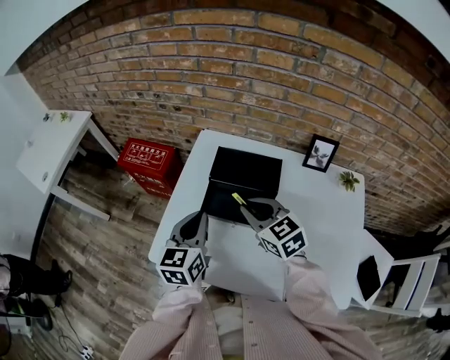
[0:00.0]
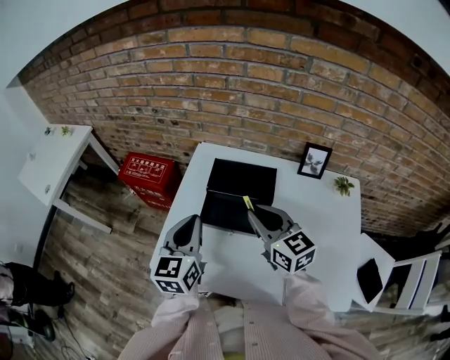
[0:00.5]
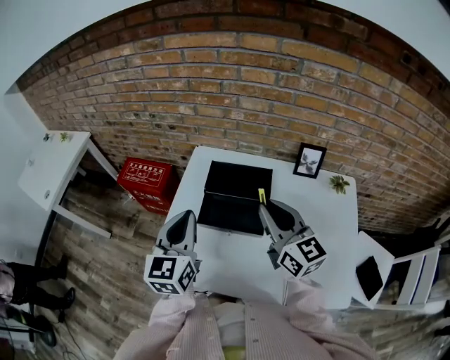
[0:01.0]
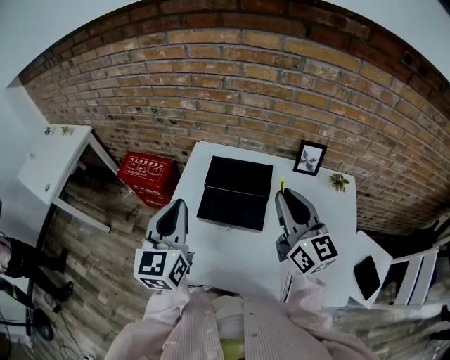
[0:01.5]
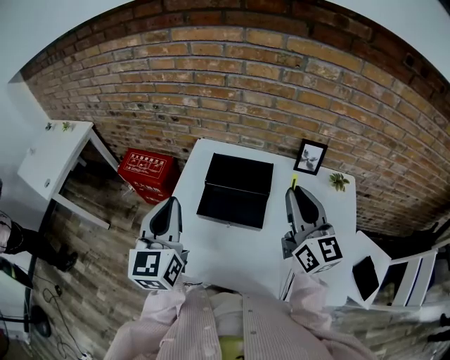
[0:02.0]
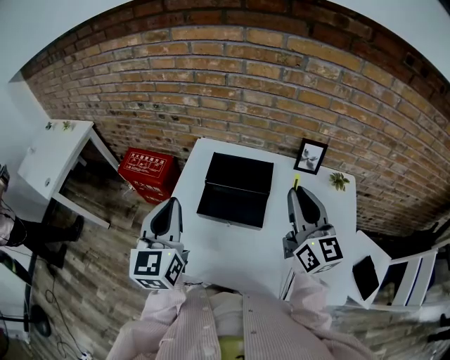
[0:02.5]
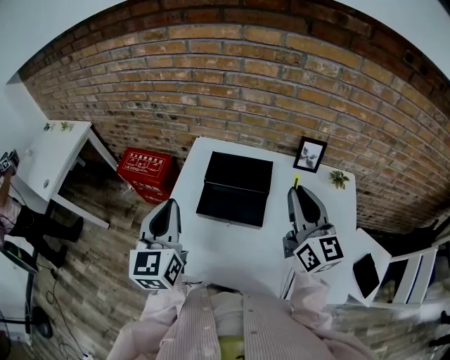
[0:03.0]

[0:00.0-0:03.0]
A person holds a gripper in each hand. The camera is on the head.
0:00.0 to 0:01.5: The left gripper moves upward, about 10 cm. Meanwhile the right gripper heads upward and to the right, covering some 20 cm, and points its fingers approximately 30 degrees further upward.
0:01.5 to 0:03.0: The grippers make only small movements.

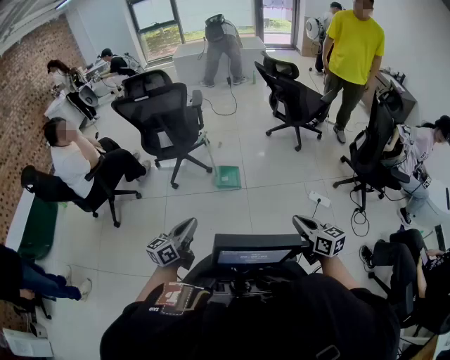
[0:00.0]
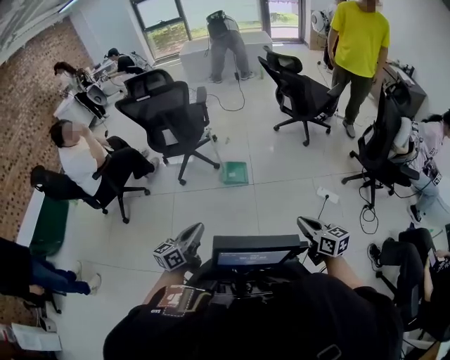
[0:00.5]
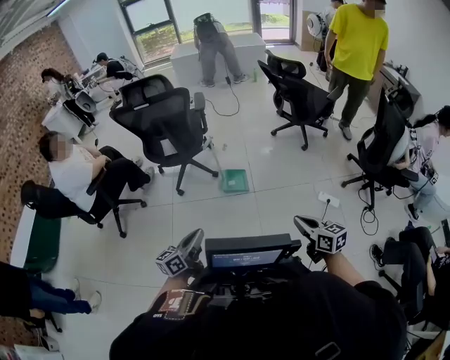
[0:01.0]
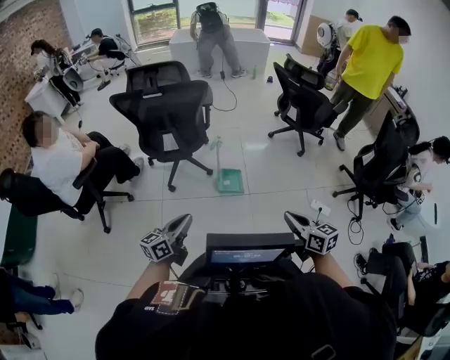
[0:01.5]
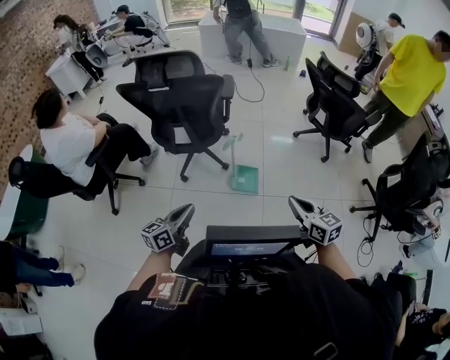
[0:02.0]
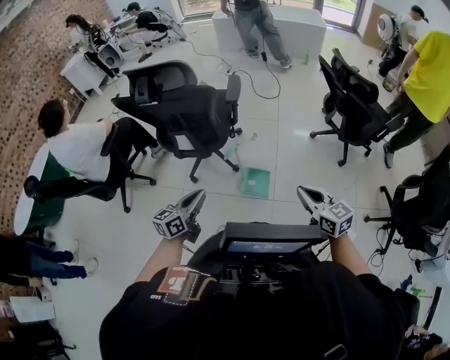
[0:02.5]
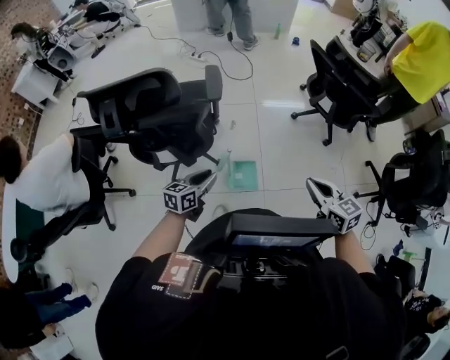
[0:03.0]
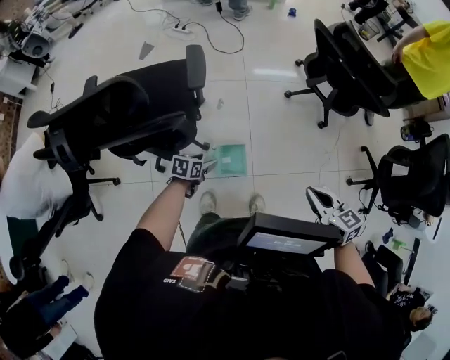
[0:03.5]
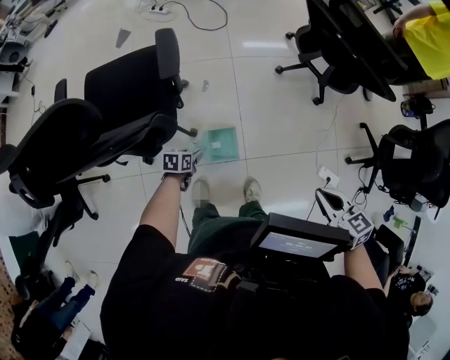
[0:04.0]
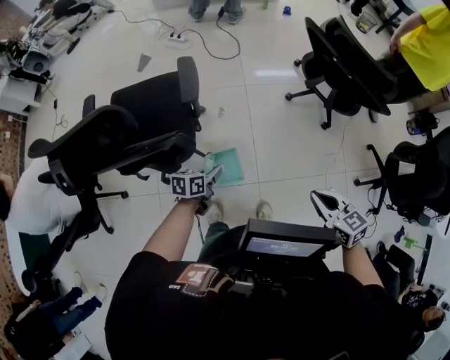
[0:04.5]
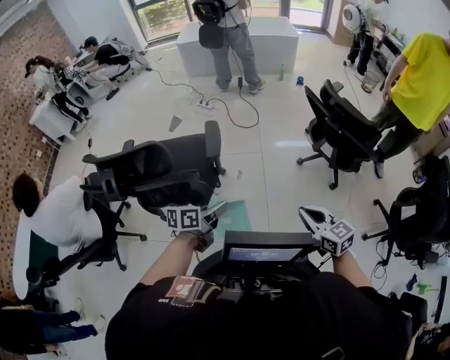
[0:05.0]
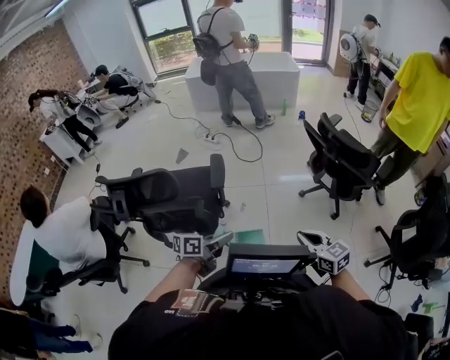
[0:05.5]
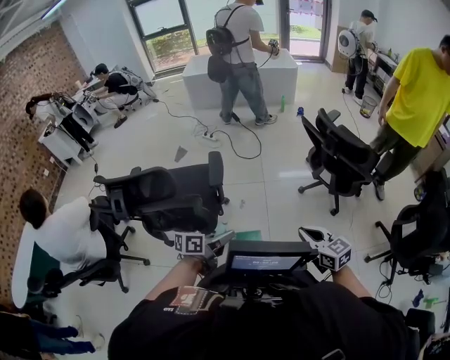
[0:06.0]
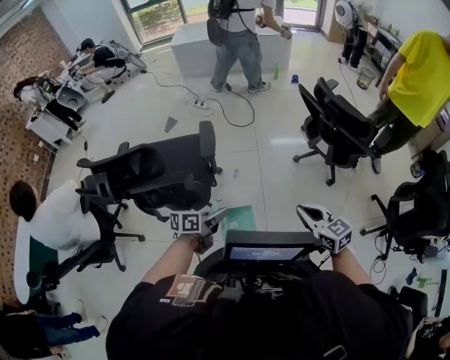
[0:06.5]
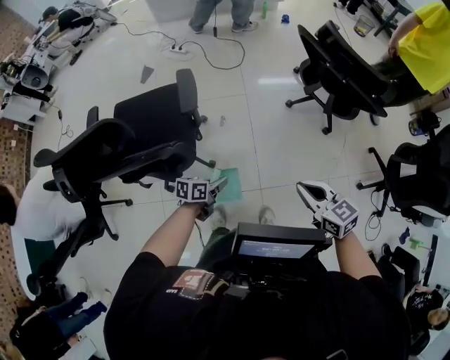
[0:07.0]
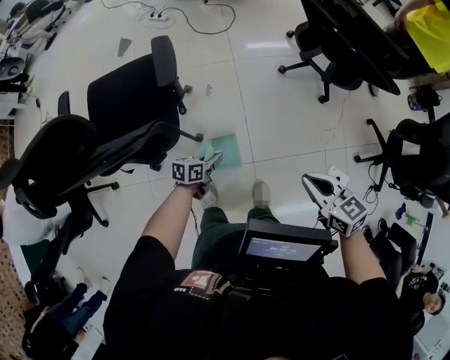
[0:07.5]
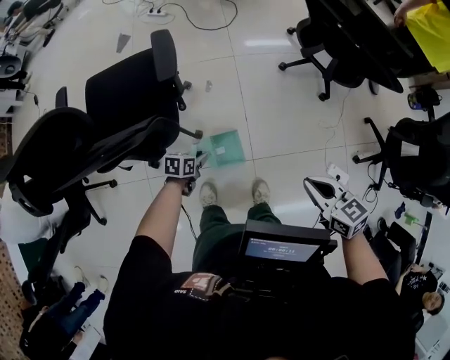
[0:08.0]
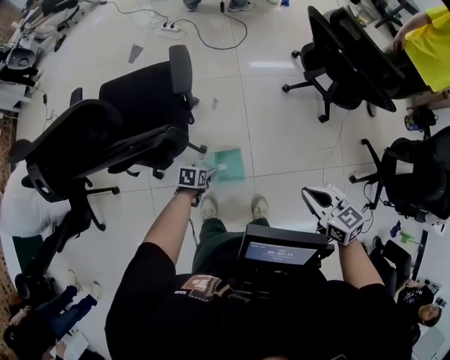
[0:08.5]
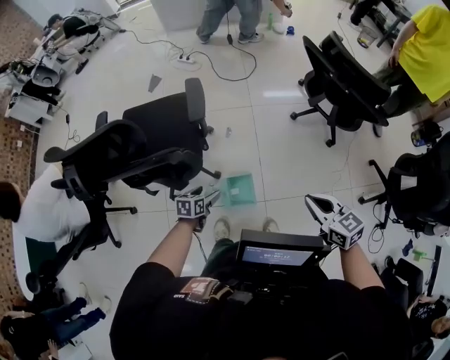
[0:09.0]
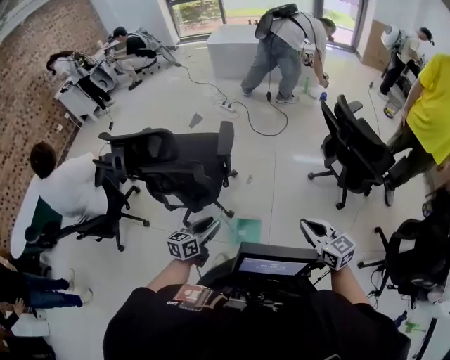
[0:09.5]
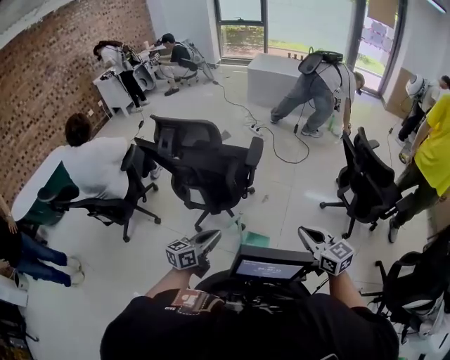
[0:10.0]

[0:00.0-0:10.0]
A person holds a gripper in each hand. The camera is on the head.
0:00.0 to 0:02.0: Both grippers are carried forward and to the left, roughly 50 cm.
0:02.0 to 0:04.0: The pair of grippers is taken forward, some 60 cm. The right gripper rotates about 20 degrees, while the left gripper is displaced downward by roughly 40 cm, tilts its fingers roughly 50 degrees downward, and opens.
0:04.0 to 0:06.0: The right gripper is displaced upward by some 20 cm, and turns by approximately 30 degrees. Meanwhile the left gripper travels upward by about 50 cm, tips its fingers upward by about 40 degrees, and closes up.
0:06.0 to 0:08.0: The right gripper shifts some 25 cm downward. The left gripper shifts roughly 50 cm downward, and tips its fingers downward by some 30 degrees.
0:08.0 to 0:10.0: The left gripper goes roughly 50 cm upward, tips its fingers upward by approximately 40 degrees, and opens, then closes once more; the right gripper travels upward by about 30 cm, and rotates roughly 30 degrees.

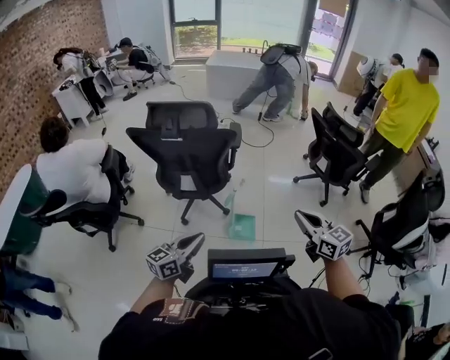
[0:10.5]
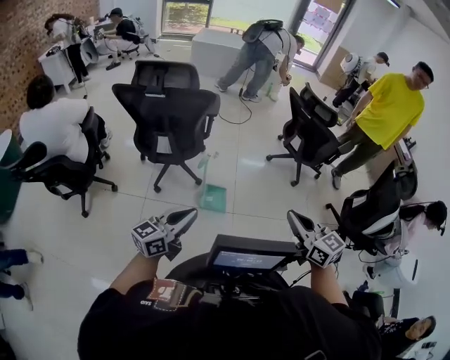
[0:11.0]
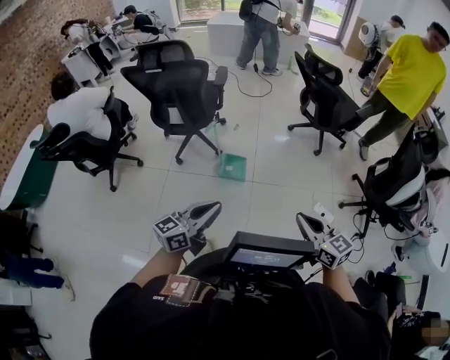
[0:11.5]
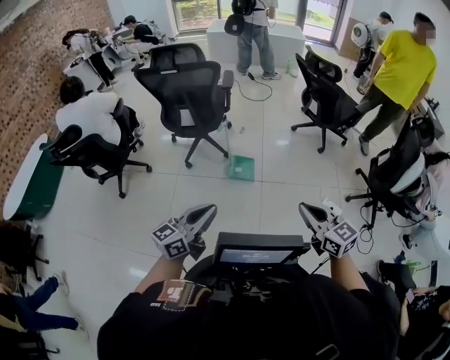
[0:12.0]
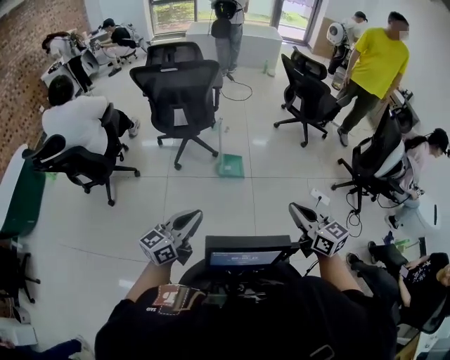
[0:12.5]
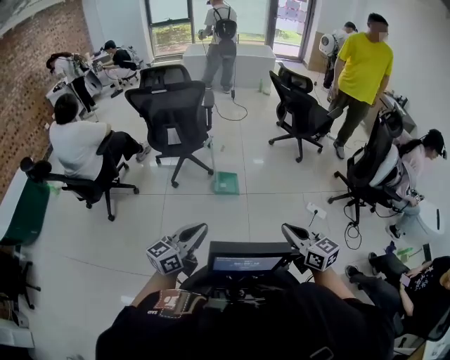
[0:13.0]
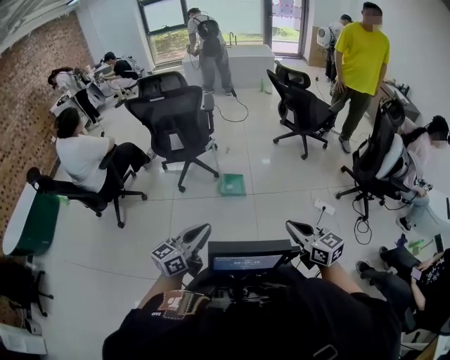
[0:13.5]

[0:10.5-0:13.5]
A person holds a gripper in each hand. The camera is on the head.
0:10.5 to 0:12.0: Both grippers are carried backward and to the right, some 50 cm.
0:12.0 to 0:13.5: The two grippers go approximately 15 cm backward. The left gripper reaches roughly 15 cm to the left, then returns.

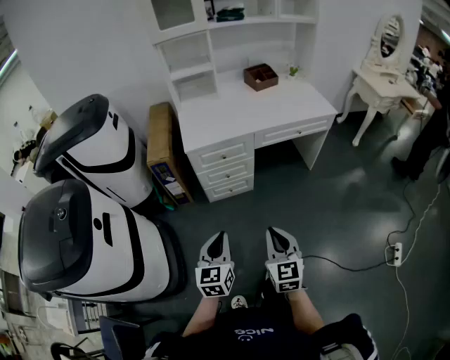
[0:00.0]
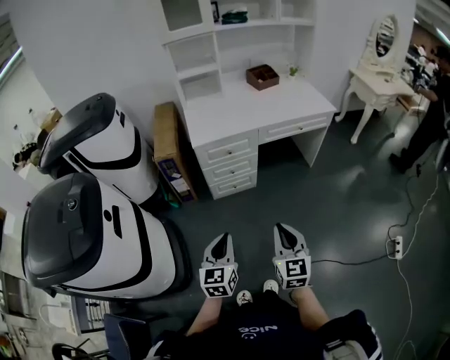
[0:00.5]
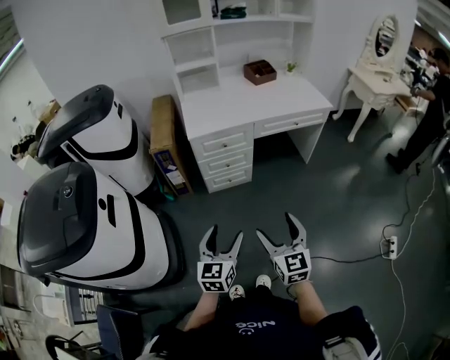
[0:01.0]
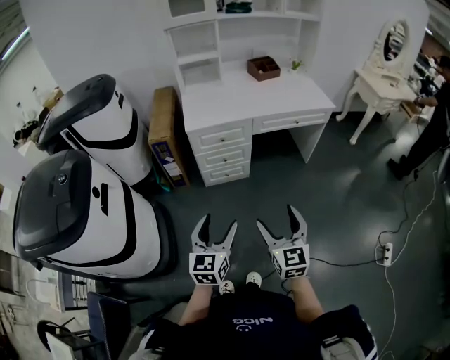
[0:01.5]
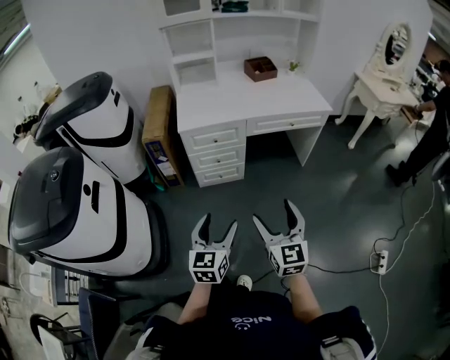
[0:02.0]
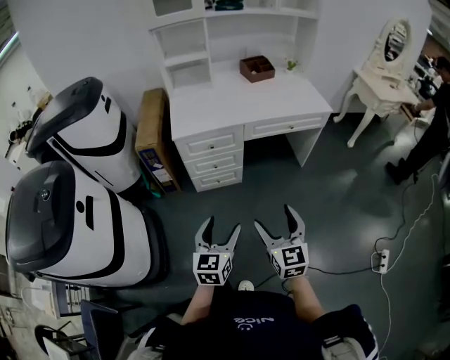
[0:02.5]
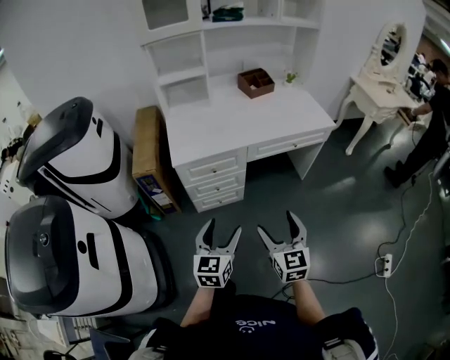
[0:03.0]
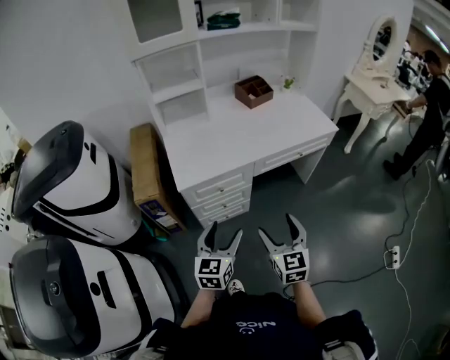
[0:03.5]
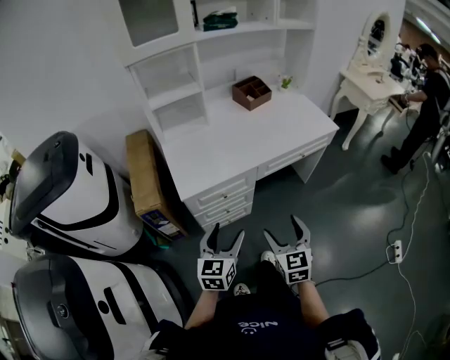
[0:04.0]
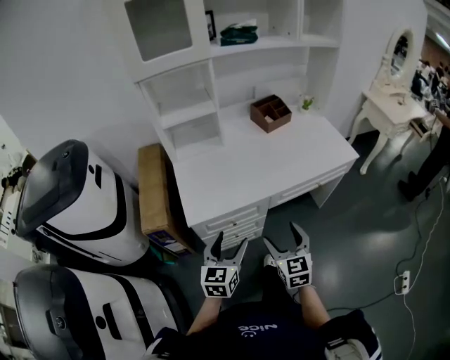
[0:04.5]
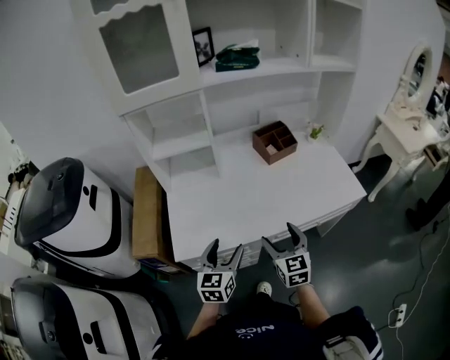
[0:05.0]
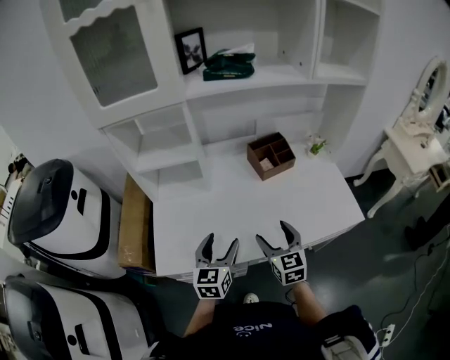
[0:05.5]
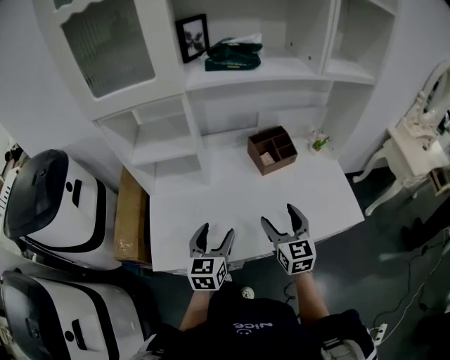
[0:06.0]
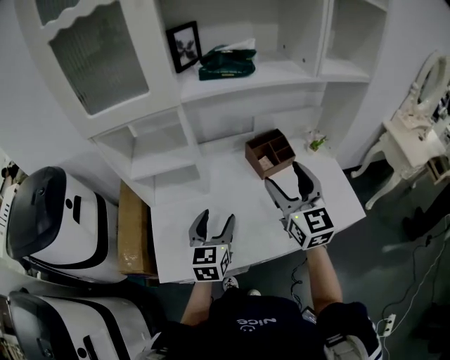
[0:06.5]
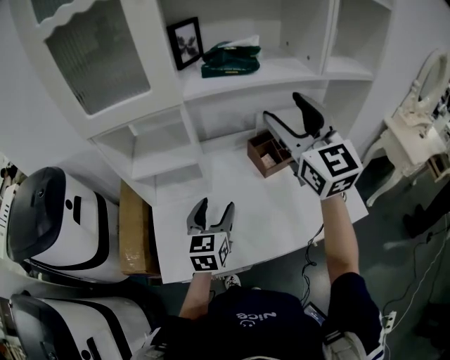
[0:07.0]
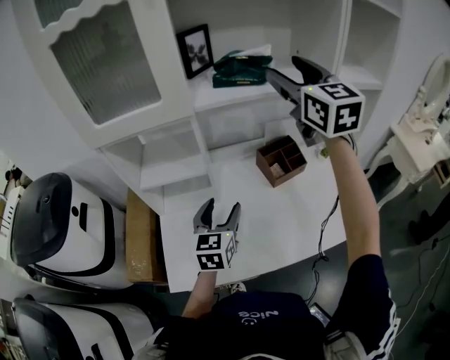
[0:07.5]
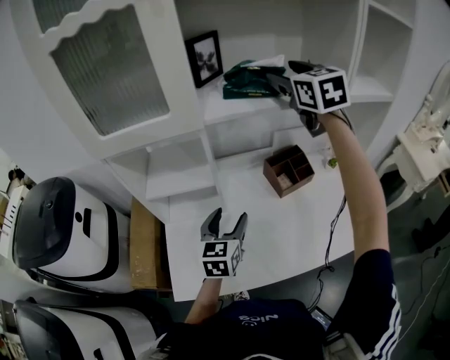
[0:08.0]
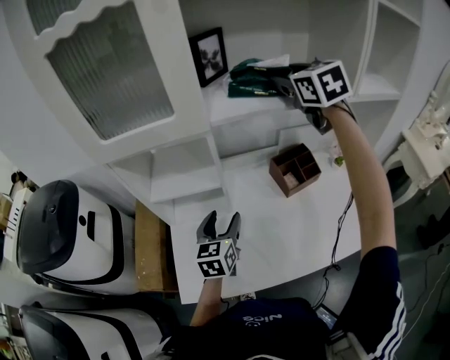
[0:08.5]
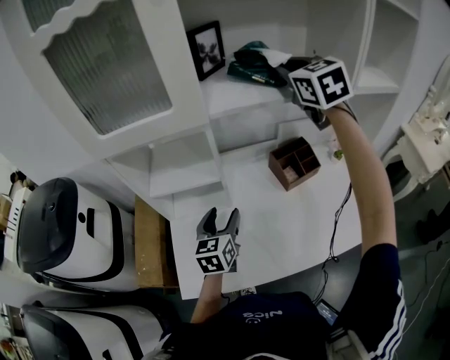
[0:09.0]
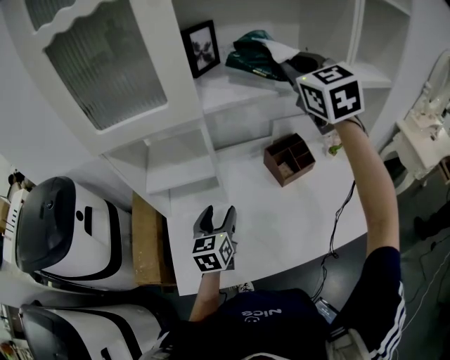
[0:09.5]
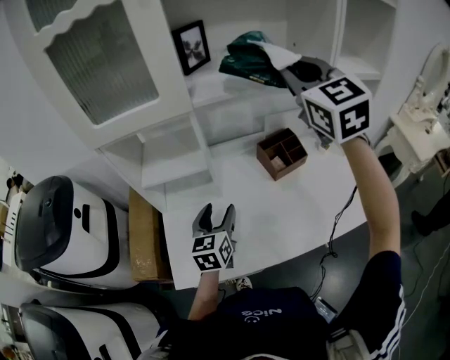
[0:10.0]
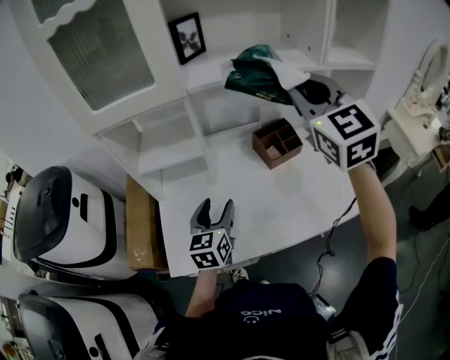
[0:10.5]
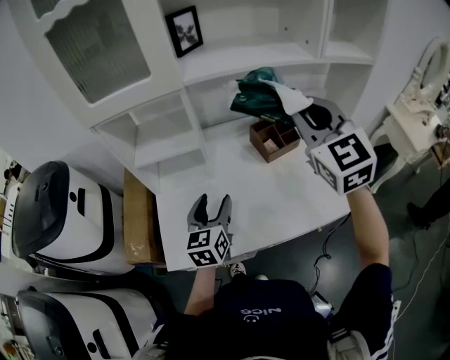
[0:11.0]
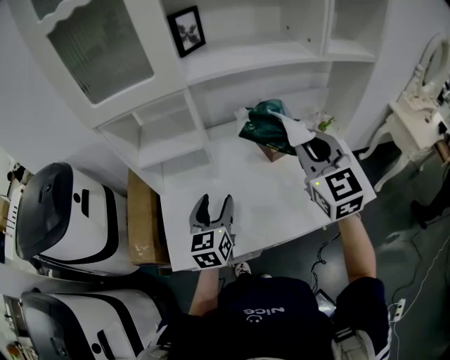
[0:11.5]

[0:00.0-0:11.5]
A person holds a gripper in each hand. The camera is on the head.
0:00.0 to 0:02.0: The right gripper travels to the right by roughly 5 cm, and opens, while the left gripper moves to the right and backward, roughly 10 cm, and opens.
0:02.0 to 0:04.0: The grippers both shift forward by approximately 30 cm. The right gripper swivels roughly 20 degrees.
0:04.0 to 0:06.0: The grippers both shift forward by about 40 cm.
0:06.0 to 0:07.5: The right gripper goes some 40 cm upward and forward, and turns by approximately 20 degrees, while the left gripper heads forward and upward, covering roughly 15 cm.
0:07.5 to 0:09.5: The right gripper closes, while the left gripper changes place by roughly 5 cm.
0:09.5 to 0:11.5: The right gripper heads backward and downward, covering roughly 25 cm, while the left gripper moves backward, approximately 10 cm.
